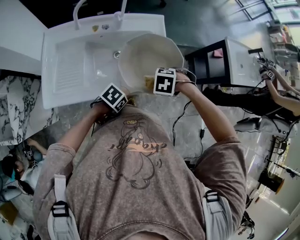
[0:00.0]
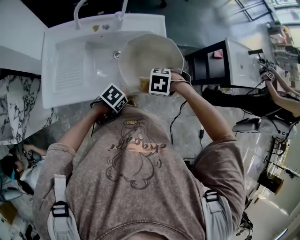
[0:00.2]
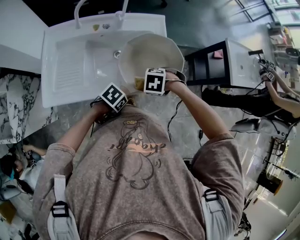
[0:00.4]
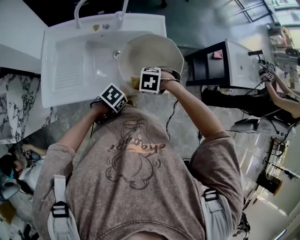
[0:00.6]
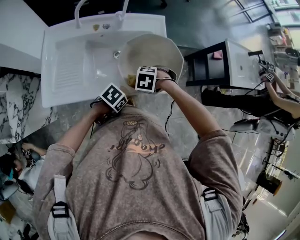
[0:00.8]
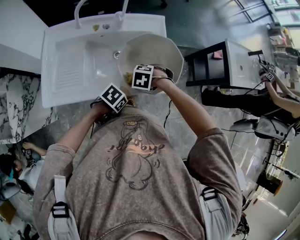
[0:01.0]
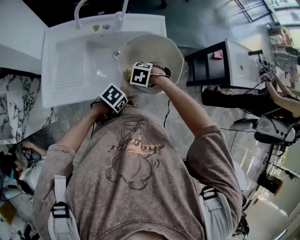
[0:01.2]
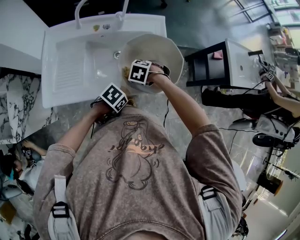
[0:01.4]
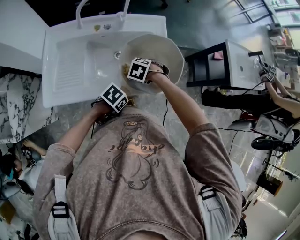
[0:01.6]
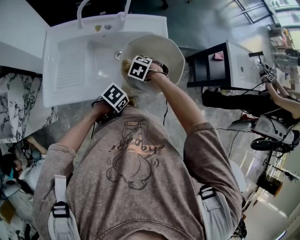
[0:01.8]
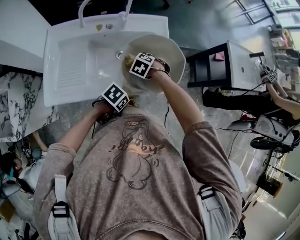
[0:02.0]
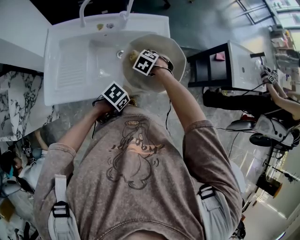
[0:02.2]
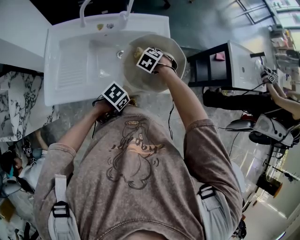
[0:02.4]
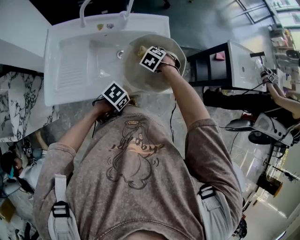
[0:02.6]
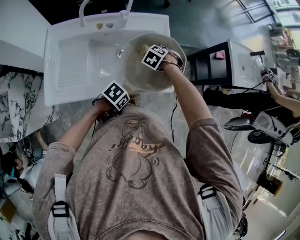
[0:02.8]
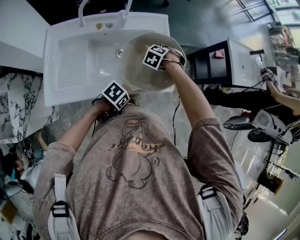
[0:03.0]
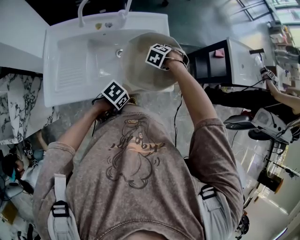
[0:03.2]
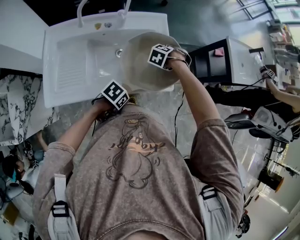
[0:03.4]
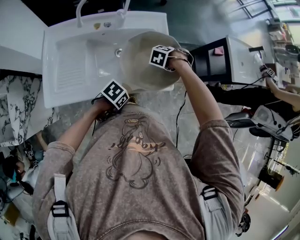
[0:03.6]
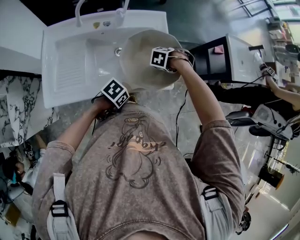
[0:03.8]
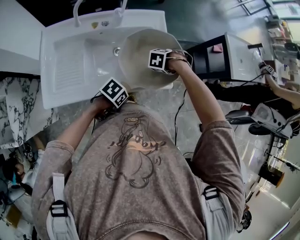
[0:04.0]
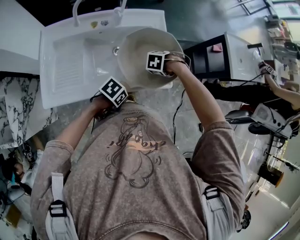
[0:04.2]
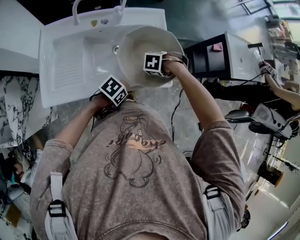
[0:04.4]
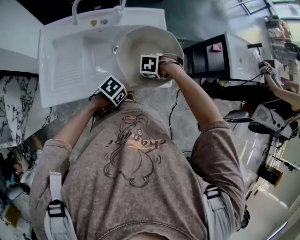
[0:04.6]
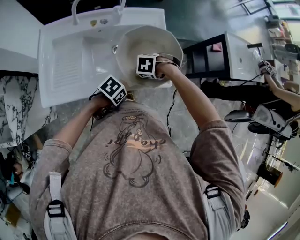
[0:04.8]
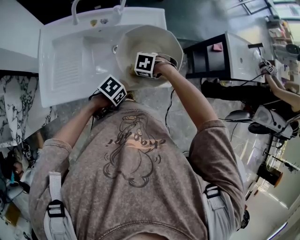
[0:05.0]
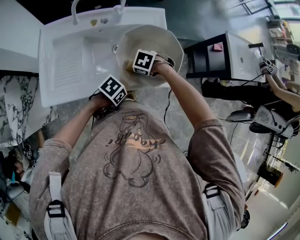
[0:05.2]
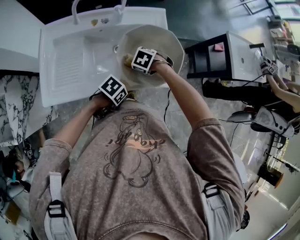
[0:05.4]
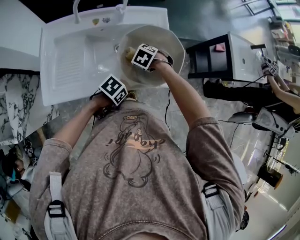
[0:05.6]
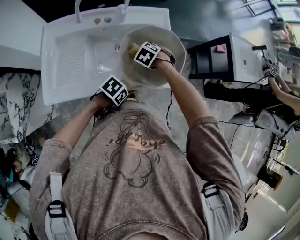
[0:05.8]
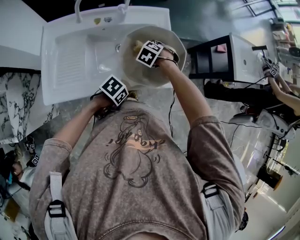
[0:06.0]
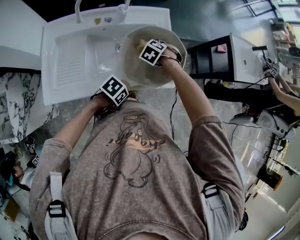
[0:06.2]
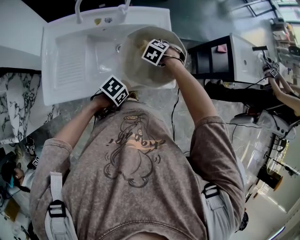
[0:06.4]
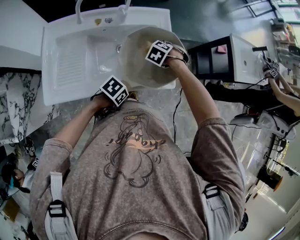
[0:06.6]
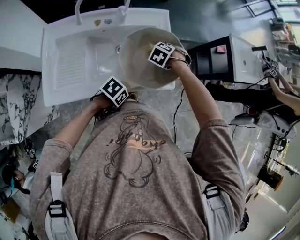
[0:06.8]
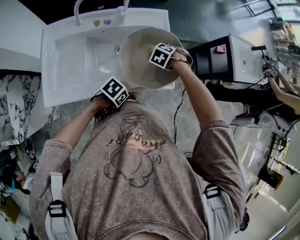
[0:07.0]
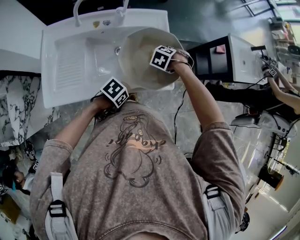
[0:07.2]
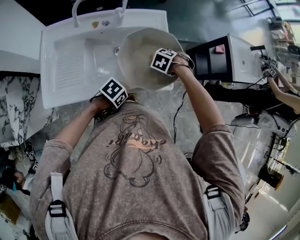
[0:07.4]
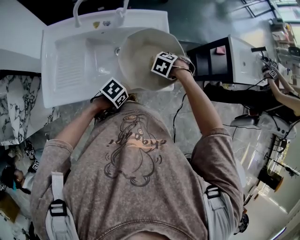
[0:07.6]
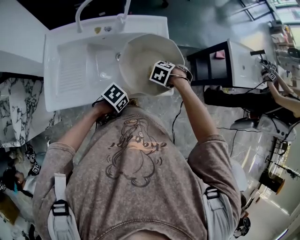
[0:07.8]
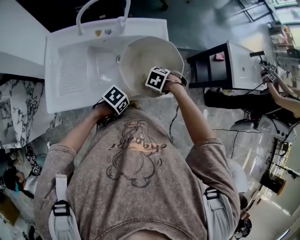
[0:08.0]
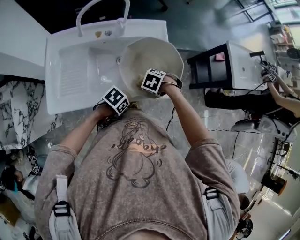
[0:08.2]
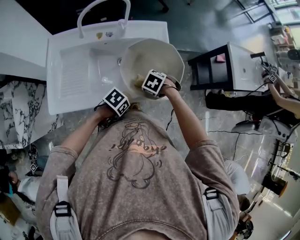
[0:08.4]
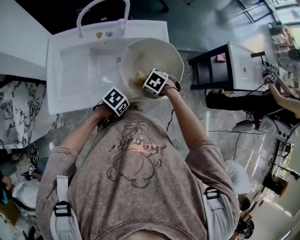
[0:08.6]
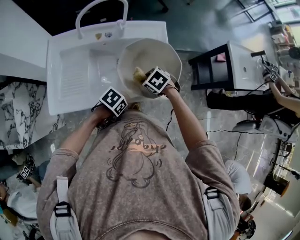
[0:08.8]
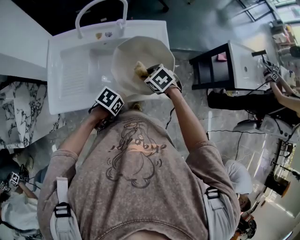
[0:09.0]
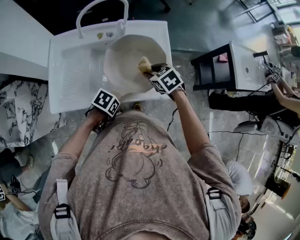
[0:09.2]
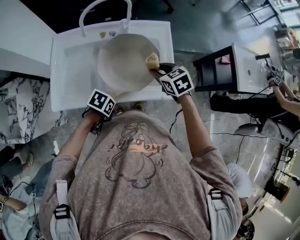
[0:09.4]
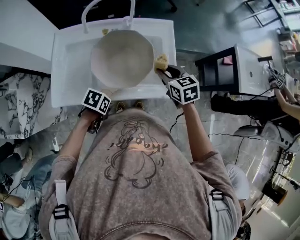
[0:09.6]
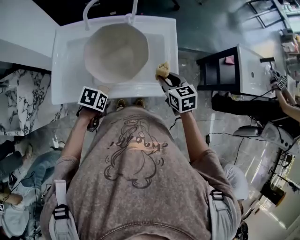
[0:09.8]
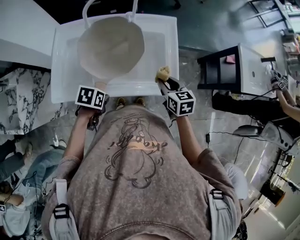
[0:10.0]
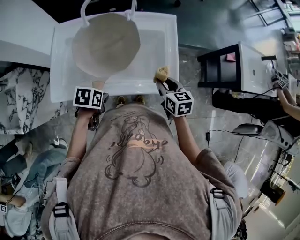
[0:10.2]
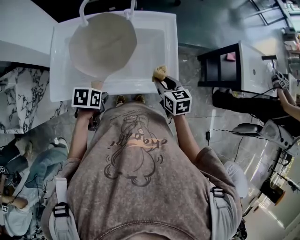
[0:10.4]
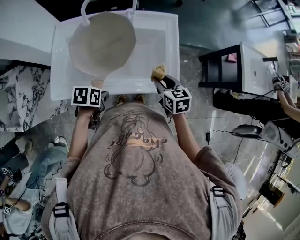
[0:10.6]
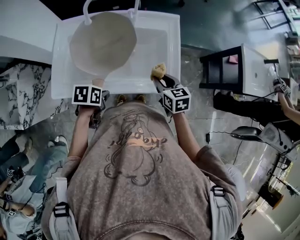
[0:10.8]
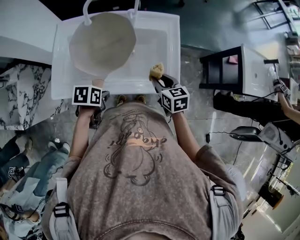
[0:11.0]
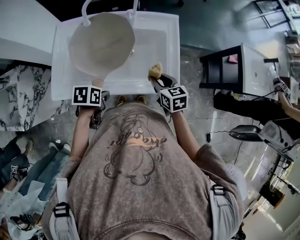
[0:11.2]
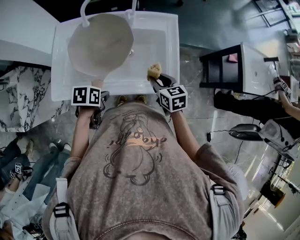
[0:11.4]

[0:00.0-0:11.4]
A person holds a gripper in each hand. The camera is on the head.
0:00.0 to 0:01.4: The right gripper moves roughly 10 cm.
0:01.4 to 0:02.8: The right gripper shifts by some 10 cm, and turns by some 20 degrees.
0:02.8 to 0:04.2: The right gripper moves roughly 10 cm, and swivels roughly 30 degrees.
0:04.2 to 0:05.6: The right gripper shifts by about 10 cm, and rotates some 30 degrees.
0:05.6 to 0:07.2: The right gripper moves roughly 10 cm.
0:07.2 to 0:08.6: The right gripper ends up some 10 cm from where it was, and swivels about 30 degrees.
0:08.6 to 0:10.0: The right gripper shifts some 10 cm upward, and points its fingers about 40 degrees further upward.

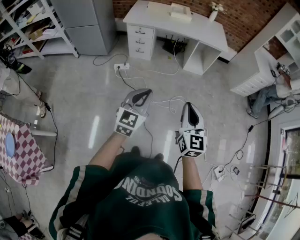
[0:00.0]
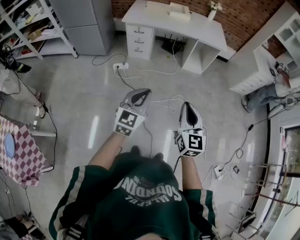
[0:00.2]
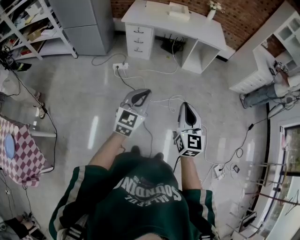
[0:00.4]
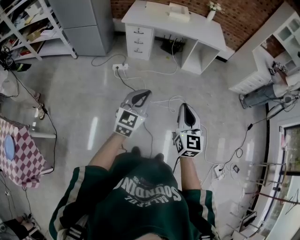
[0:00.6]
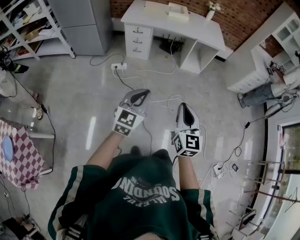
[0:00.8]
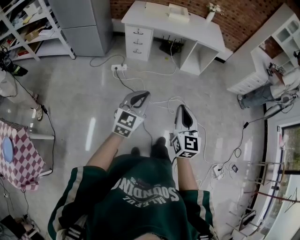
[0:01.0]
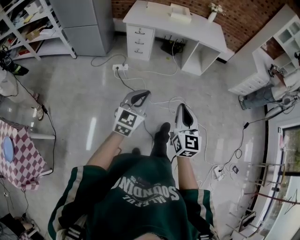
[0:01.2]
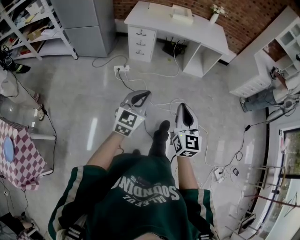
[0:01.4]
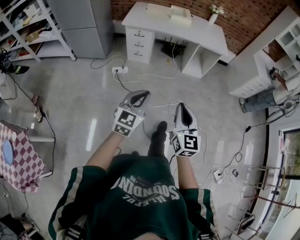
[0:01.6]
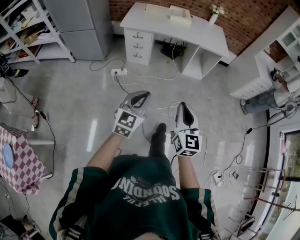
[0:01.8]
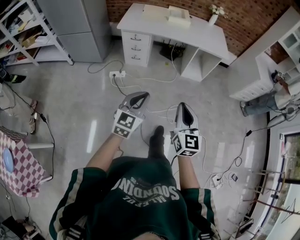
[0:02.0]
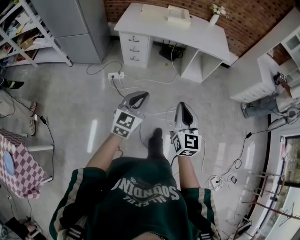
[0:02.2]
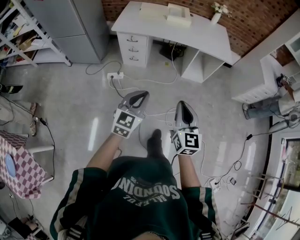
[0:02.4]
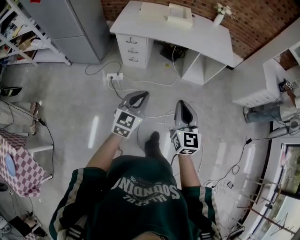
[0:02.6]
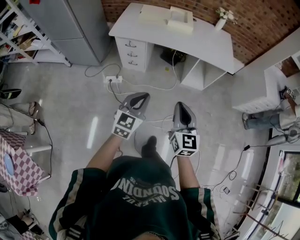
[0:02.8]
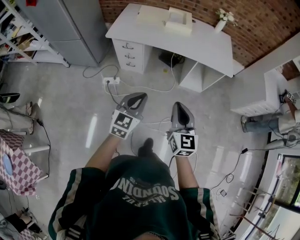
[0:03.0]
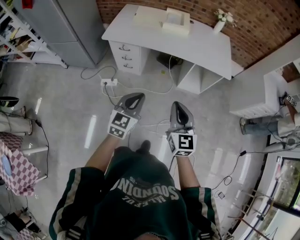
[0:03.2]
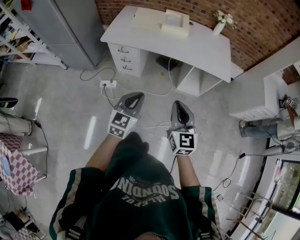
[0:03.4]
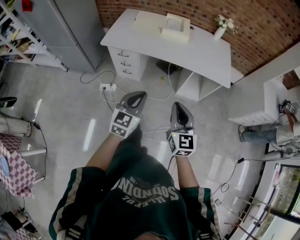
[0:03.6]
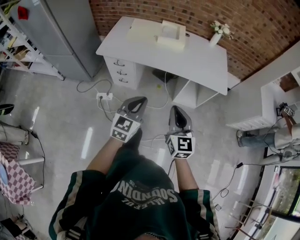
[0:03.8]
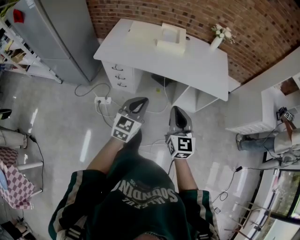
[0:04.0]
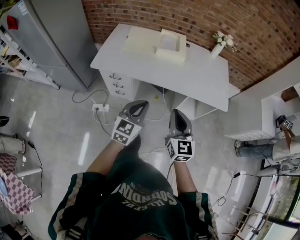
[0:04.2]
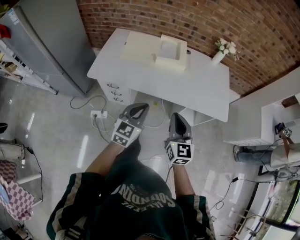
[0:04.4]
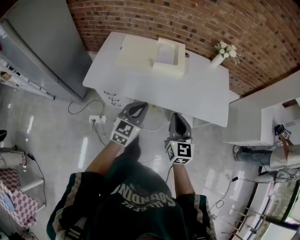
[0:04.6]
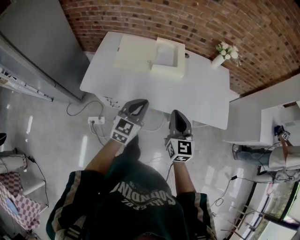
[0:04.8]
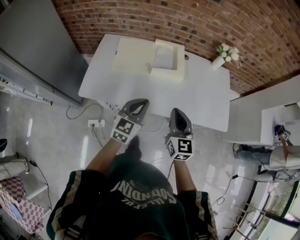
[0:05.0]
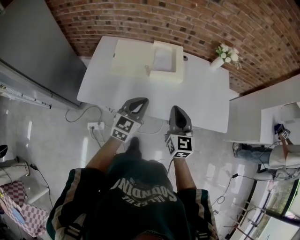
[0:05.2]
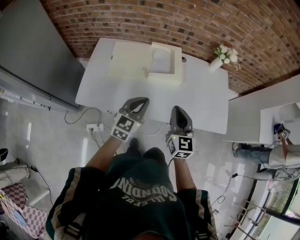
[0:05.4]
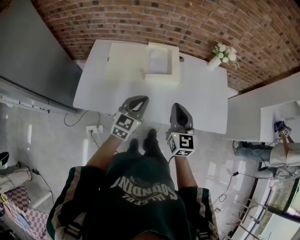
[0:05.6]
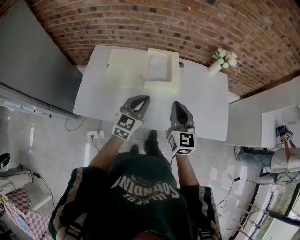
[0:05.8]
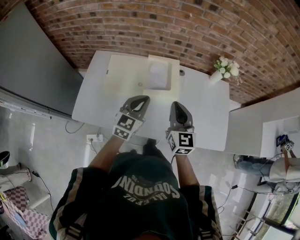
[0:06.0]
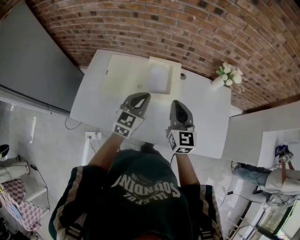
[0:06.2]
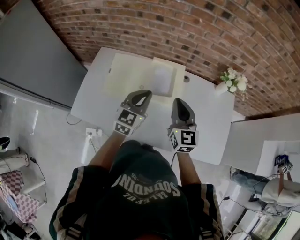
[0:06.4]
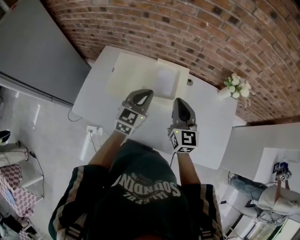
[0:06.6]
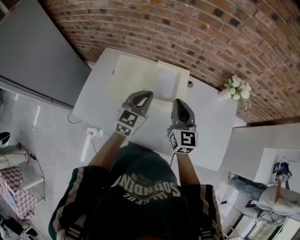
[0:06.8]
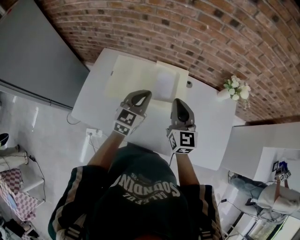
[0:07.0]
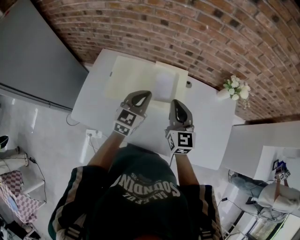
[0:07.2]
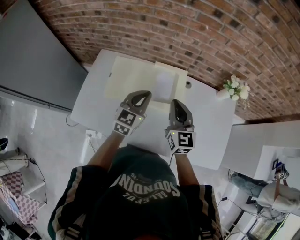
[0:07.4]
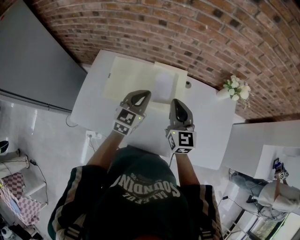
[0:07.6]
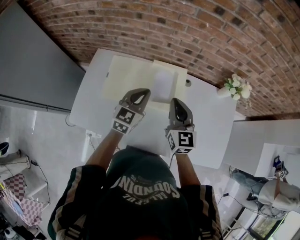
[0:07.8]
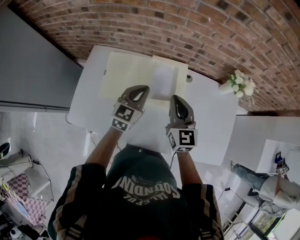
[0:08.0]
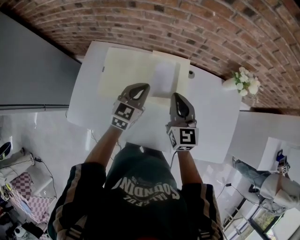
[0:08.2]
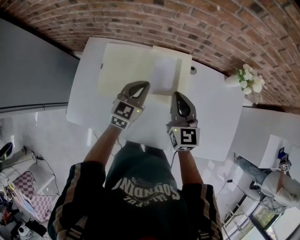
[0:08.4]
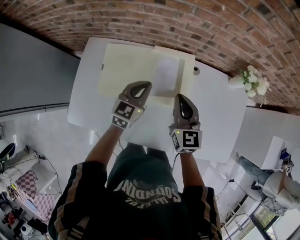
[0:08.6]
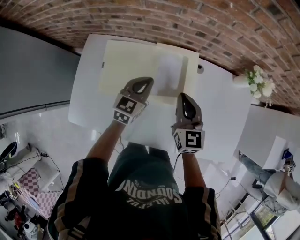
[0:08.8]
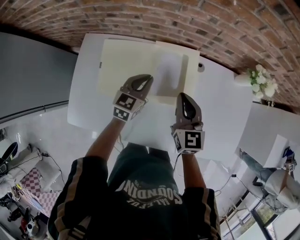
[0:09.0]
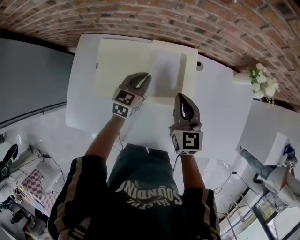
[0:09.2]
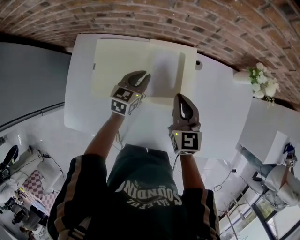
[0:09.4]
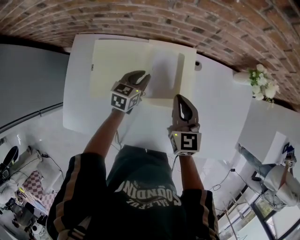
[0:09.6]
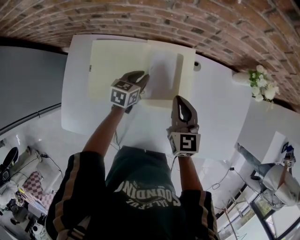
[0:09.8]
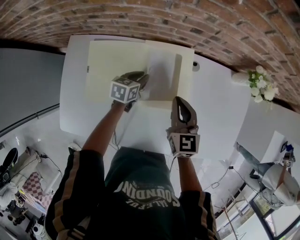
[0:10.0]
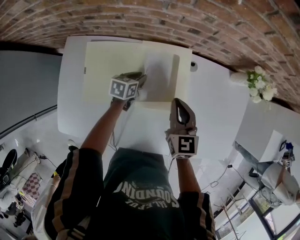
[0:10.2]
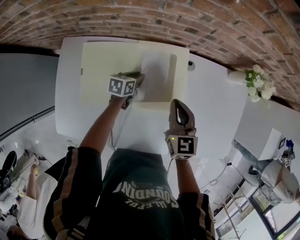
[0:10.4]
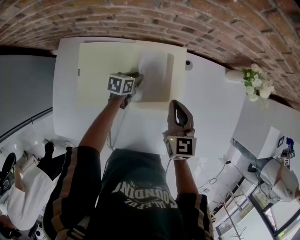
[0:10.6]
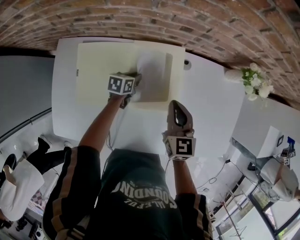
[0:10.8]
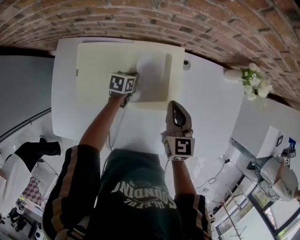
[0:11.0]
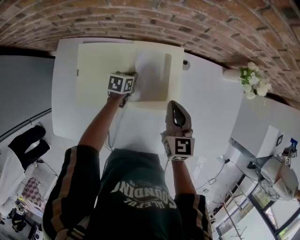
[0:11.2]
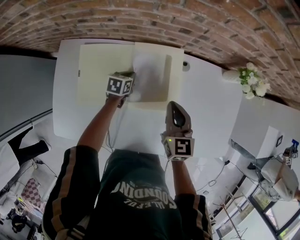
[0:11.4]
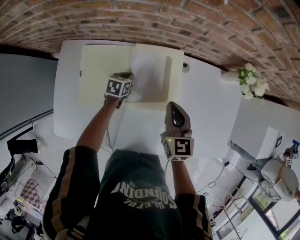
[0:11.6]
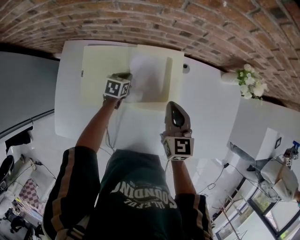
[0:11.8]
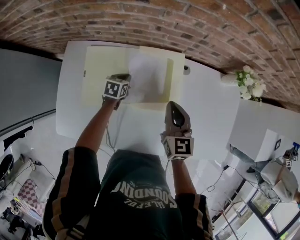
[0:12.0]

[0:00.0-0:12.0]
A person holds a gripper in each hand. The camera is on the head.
0:00.0 to 0:01.6: The left gripper changes place by approximately 5 cm. The right gripper heads to the left, covering about 5 cm.
0:01.6 to 0:03.0: The two grippers go approximately 35 cm forward.
0:03.0 to 0:04.4: Both grippers move forward, some 35 cm.
0:04.4 to 0:06.0: The two grippers go some 35 cm forward.
0:06.0 to 0:07.6: The grippers both shift forward by about 10 cm.
0:07.6 to 0:09.0: The two grippers go roughly 15 cm downward and forward.
0:09.0 to 0:10.4: The left gripper shifts roughly 15 cm downward, and swivels roughly 30 degrees. Meanwhile the right gripper shifts by some 5 cm.
0:10.4 to 0:12.0: The left gripper is displaced to the left by some 5 cm, and closes.

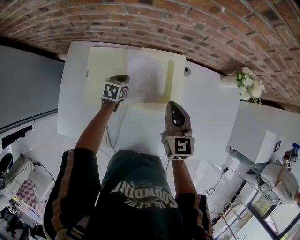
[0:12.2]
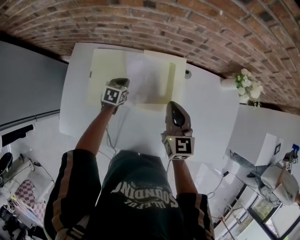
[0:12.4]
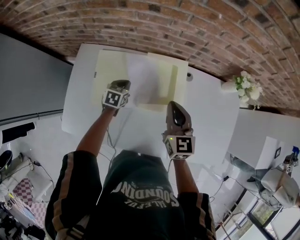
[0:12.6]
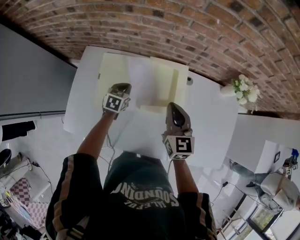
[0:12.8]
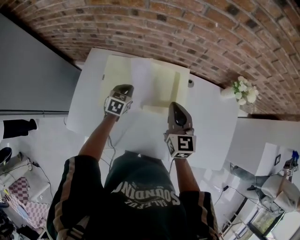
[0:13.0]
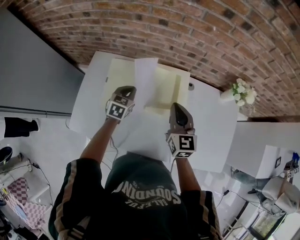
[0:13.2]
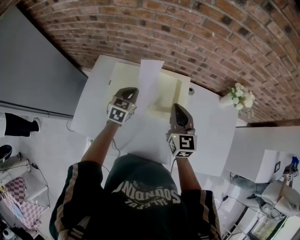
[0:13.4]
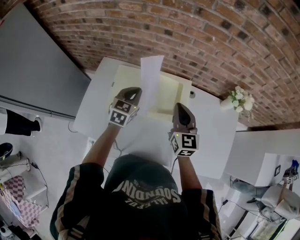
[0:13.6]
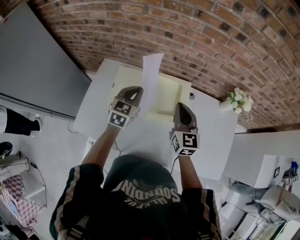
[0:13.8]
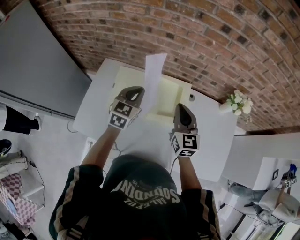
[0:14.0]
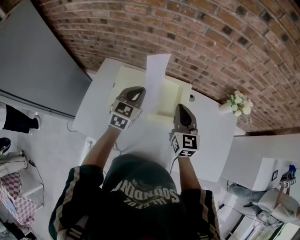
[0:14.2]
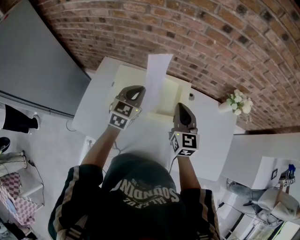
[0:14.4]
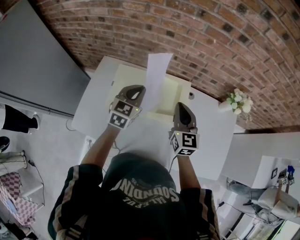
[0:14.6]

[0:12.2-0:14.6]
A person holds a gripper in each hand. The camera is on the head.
0:12.2 to 0:13.4: The right gripper travels upward by roughly 10 cm. Meanwhile the left gripper goes about 20 cm upward, and rotates some 30 degrees.
0:13.4 to 0:14.6: The left gripper travels upward by approximately 10 cm.
